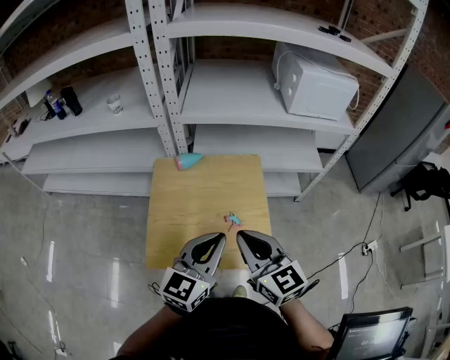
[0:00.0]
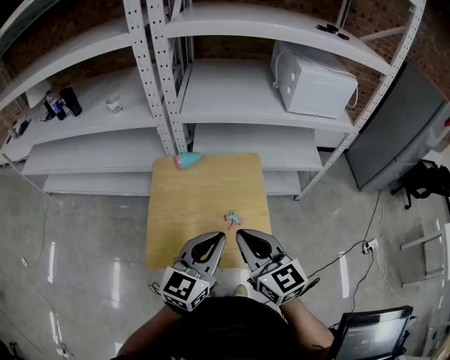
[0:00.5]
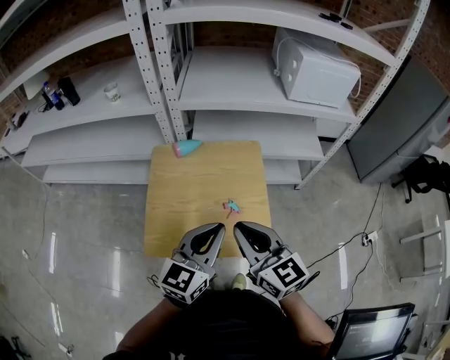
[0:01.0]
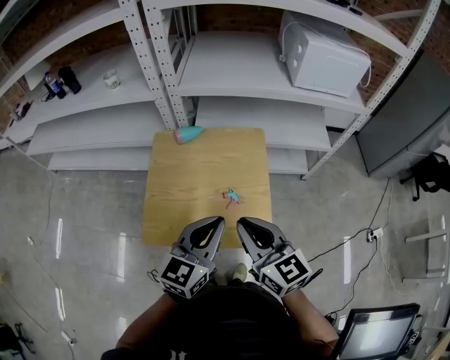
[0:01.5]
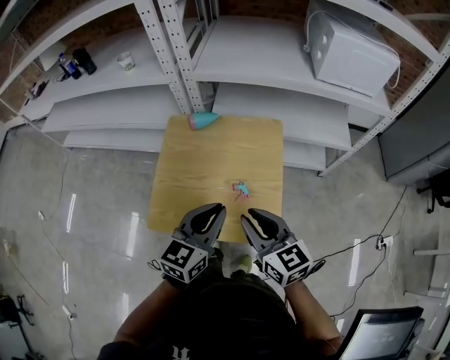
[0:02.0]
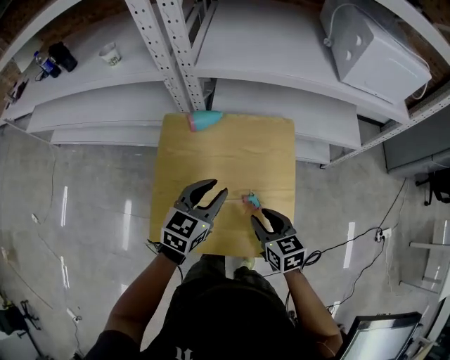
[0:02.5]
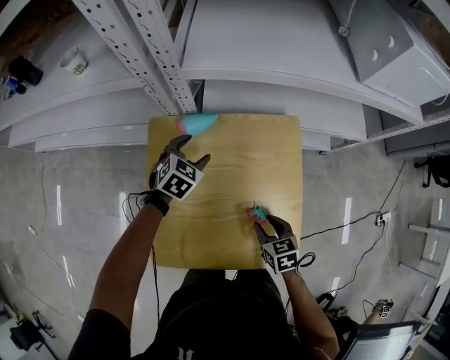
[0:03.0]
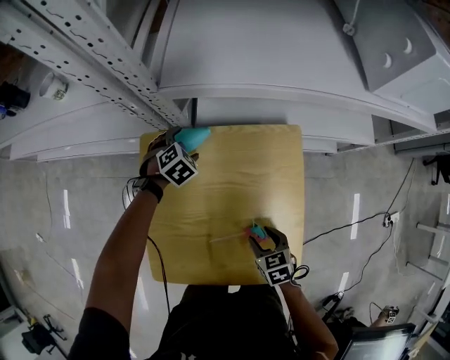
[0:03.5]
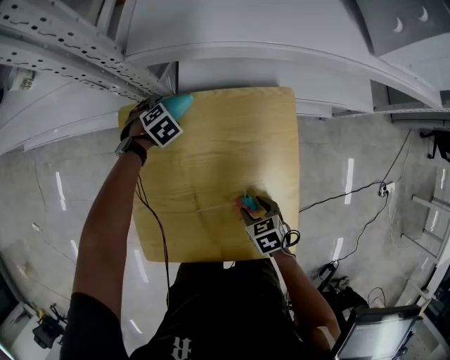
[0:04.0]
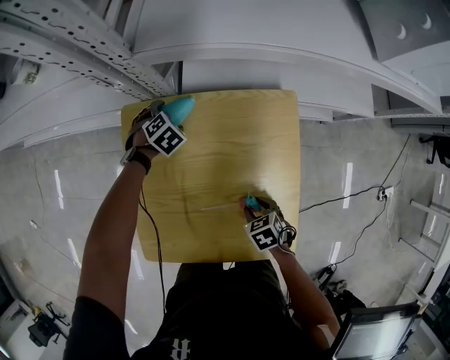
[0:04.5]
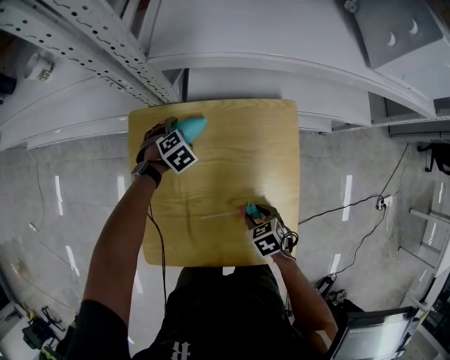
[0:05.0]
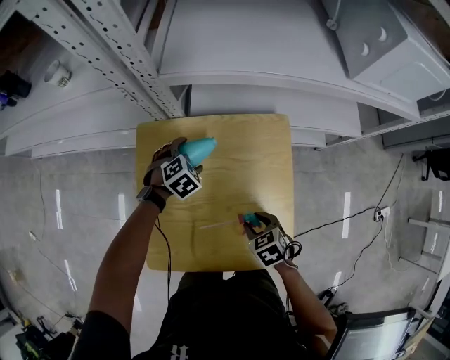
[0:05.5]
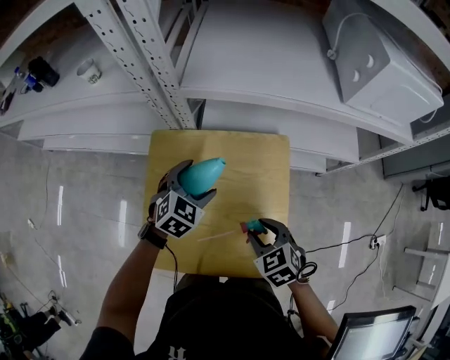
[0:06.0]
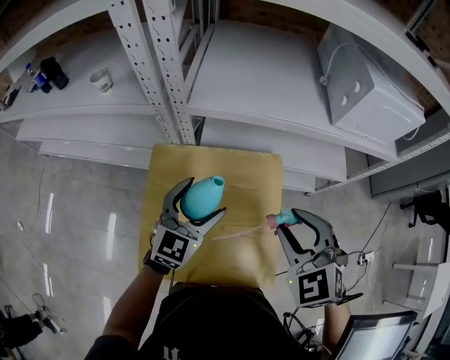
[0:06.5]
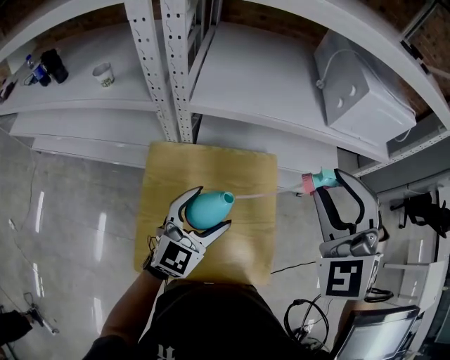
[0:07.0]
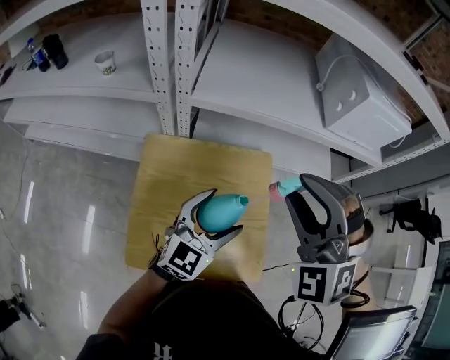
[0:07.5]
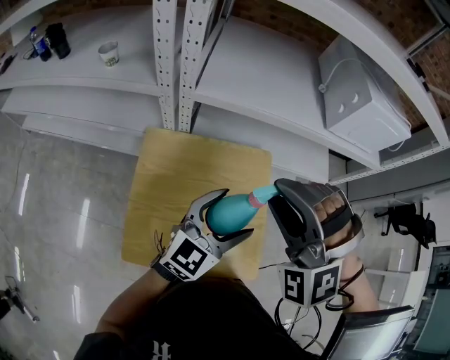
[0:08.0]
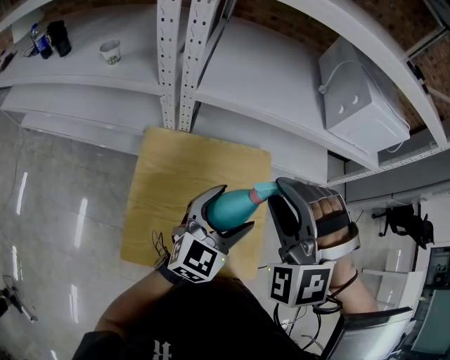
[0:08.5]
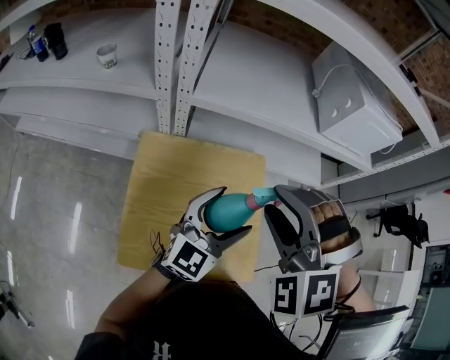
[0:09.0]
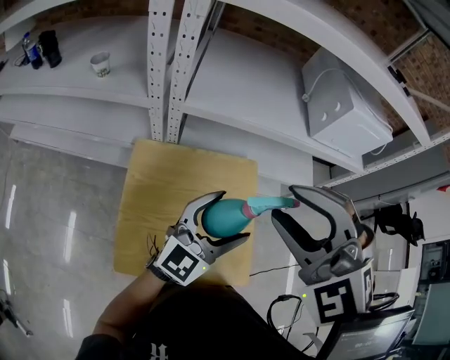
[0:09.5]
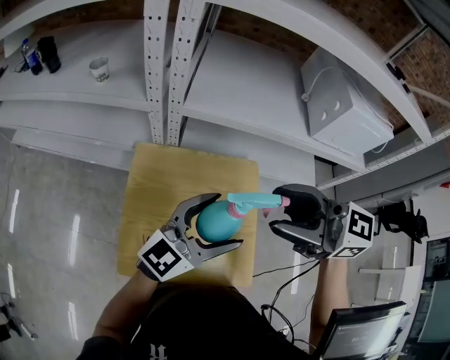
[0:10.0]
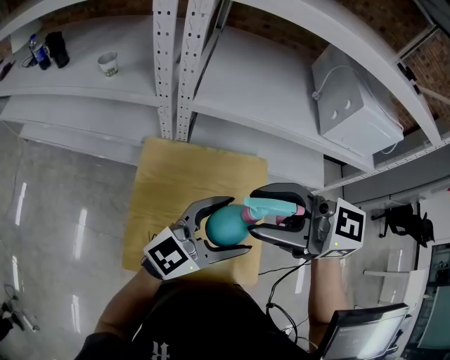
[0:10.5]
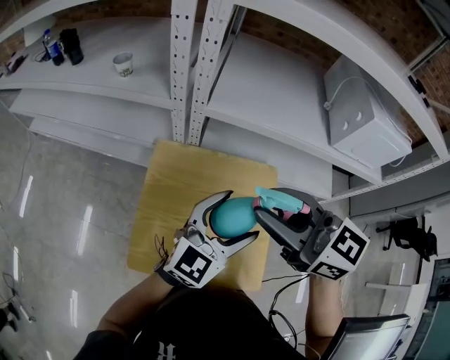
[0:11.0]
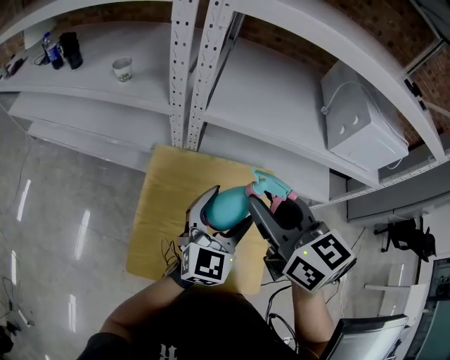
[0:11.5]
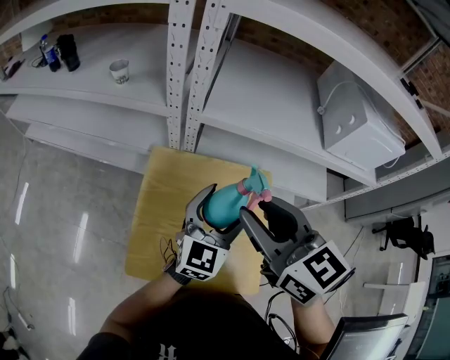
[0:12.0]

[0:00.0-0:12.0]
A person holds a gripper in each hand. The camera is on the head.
0:00.0 to 0:02.0: Both grippers travel together downward, some 10 cm.
0:02.0 to 0:04.0: The left gripper changes place by some 60 cm, tilts its fingers some 60 degrees downward, and opens up. The right gripper goes about 35 cm downward, points its fingers about 50 degrees further downward, and opens.
0:04.0 to 0:06.0: The grippers both shift upward by roughly 20 cm. The left gripper angles its fingers upward, by about 30 degrees; the right gripper rotates approximately 30 degrees.
0:06.0 to 0:08.0: The right gripper shifts approximately 30 cm upward, and twists about 70 degrees counterclockwise, seen from behind; the left gripper moves upward, backward and to the right, approximately 20 cm, and angles its fingers upward, by approximately 40 degrees.
0:08.0 to 0:10.0: The grippers both shift upward by about 5 cm. The right gripper swivels some 100 degrees.
0:10.0 to 0:12.0: The left gripper moves some 10 cm, and turns by roughly 30 degrees; the right gripper shifts by roughly 10 cm, and rotates about 30 degrees.

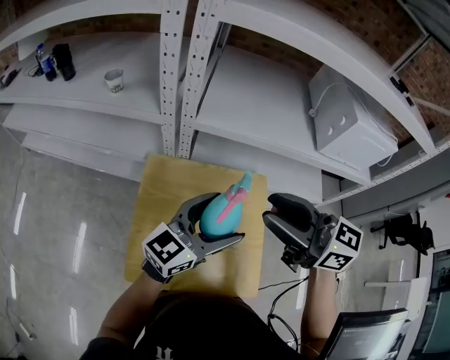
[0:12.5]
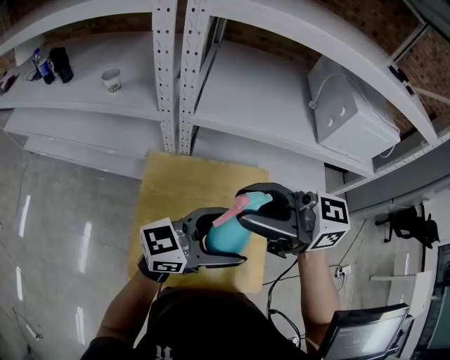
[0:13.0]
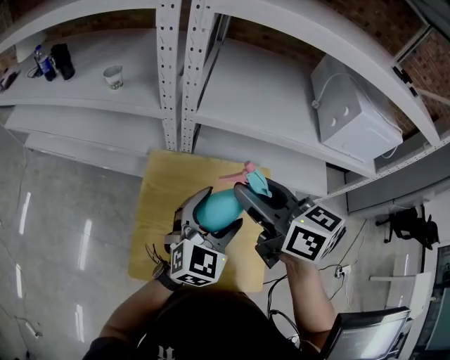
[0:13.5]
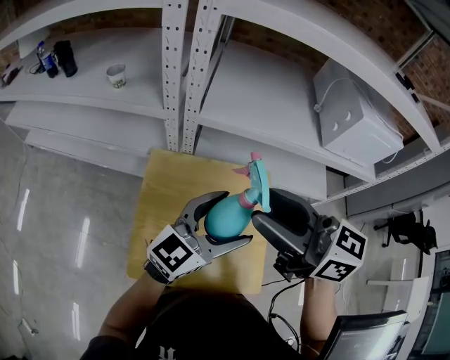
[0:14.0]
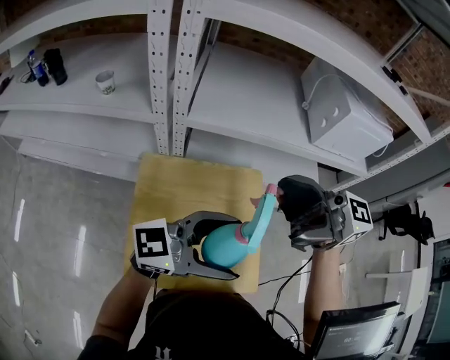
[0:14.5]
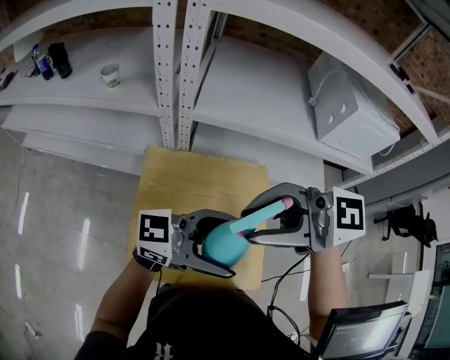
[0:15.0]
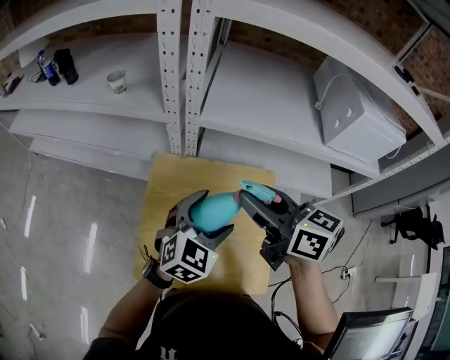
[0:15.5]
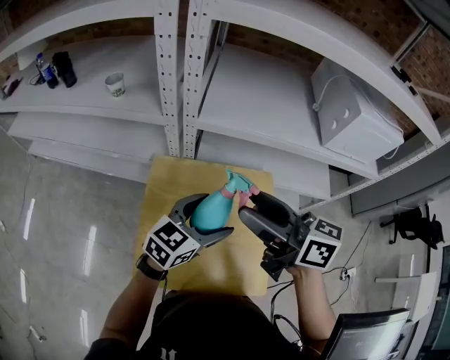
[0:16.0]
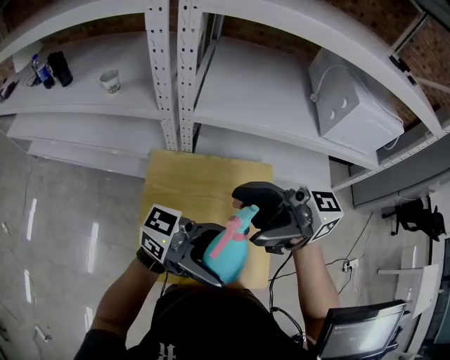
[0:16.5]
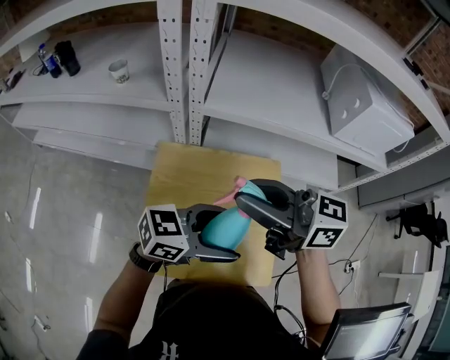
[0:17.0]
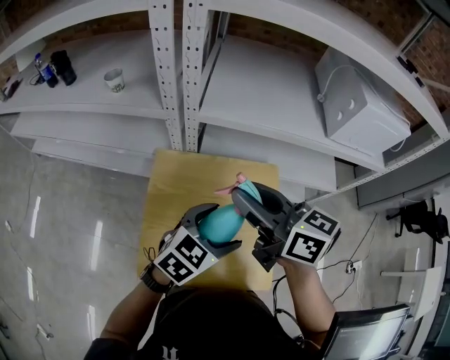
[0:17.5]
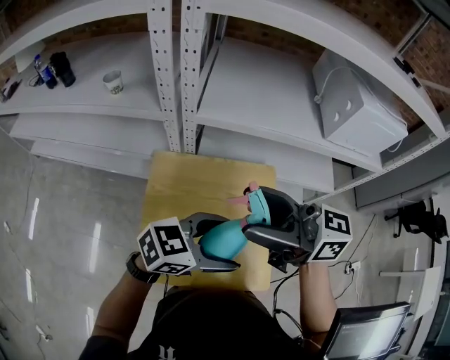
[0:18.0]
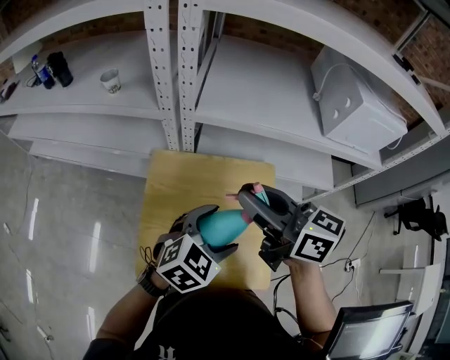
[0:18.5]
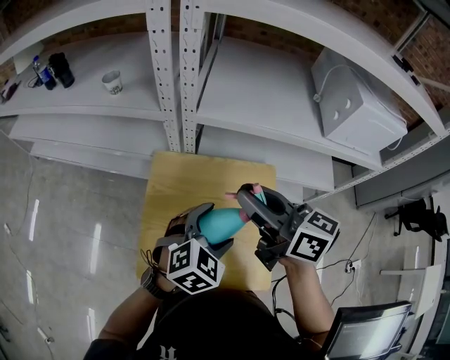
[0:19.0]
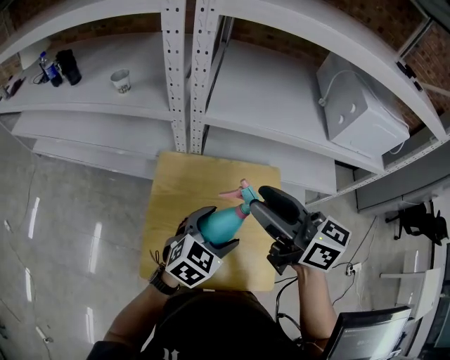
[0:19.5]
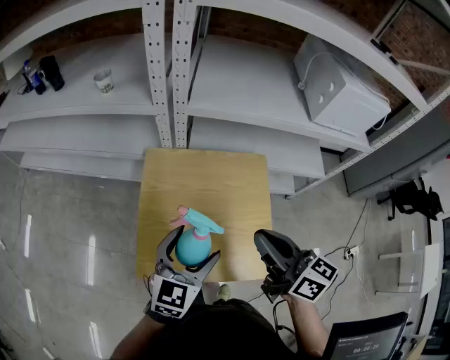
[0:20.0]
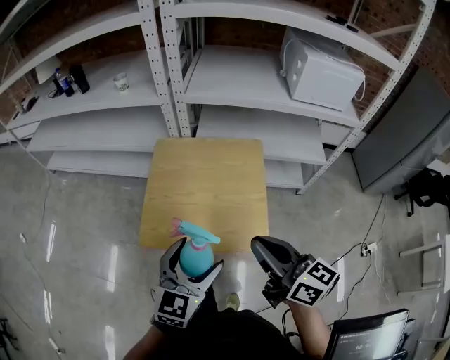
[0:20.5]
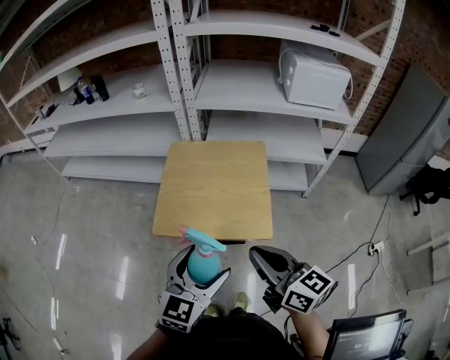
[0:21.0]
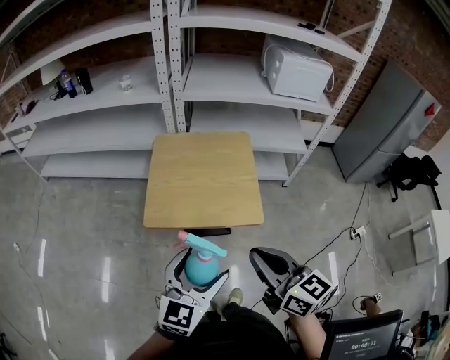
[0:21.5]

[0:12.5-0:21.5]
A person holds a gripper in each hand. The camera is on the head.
0:12.5 to 0:14.5: The right gripper goes approximately 5 cm upward, rotates roughly 30 degrees, and opens; the left gripper changes place by roughly 10 cm, and rotates approximately 40 degrees.
0:14.5 to 0:17.0: The right gripper swings up and down, about 10 cm each way, with 2 reversals, turns by roughly 20 degrees, and closes up. Meanwhile the left gripper goes up and down, approximately 10 cm each way, reversing 2 times, and rotates approximately 30 degrees.
0:17.0 to 0:19.5: The left gripper swings up and down, approximately 5 cm each way, with 2 reversals, and swivels roughly 50 degrees. Meanwhile the right gripper turns by some 20 degrees, and opens and closes again.
0:19.5 to 0:21.5: Both grippers are carried backward, approximately 50 cm. The left gripper swivels approximately 20 degrees. The right gripper closes.

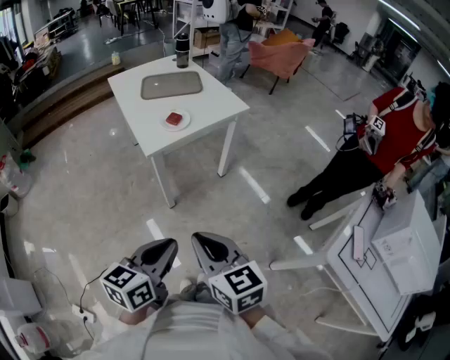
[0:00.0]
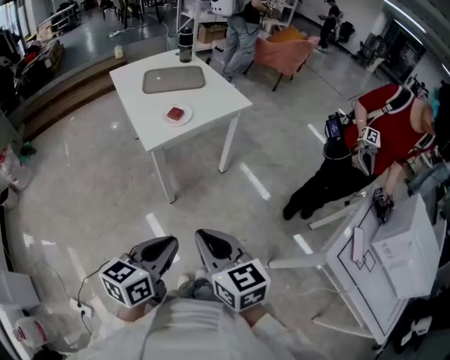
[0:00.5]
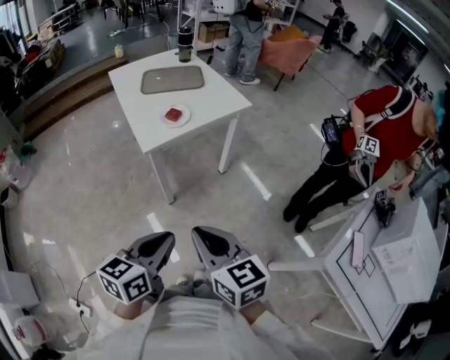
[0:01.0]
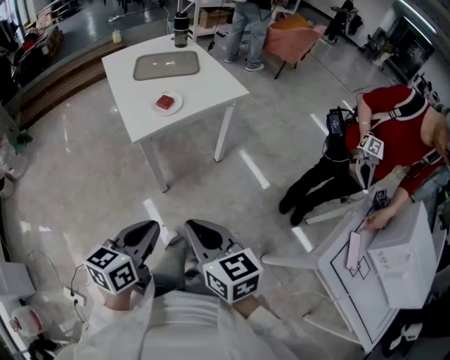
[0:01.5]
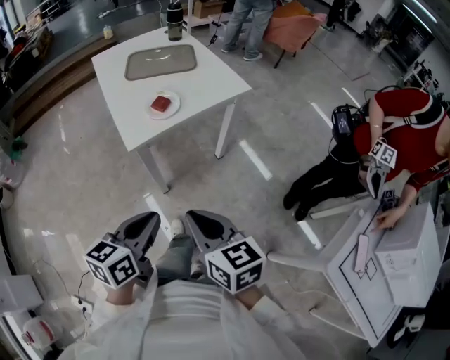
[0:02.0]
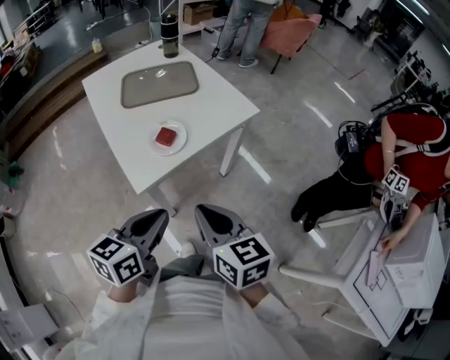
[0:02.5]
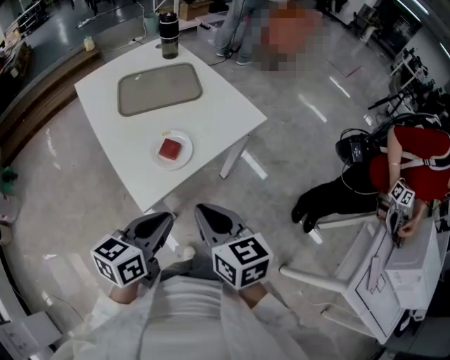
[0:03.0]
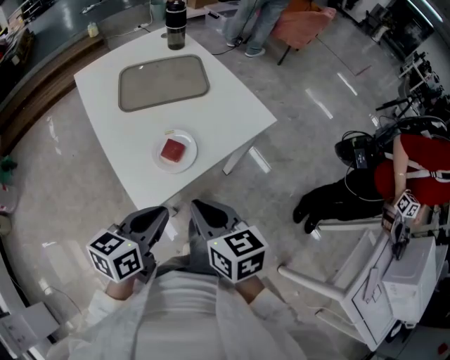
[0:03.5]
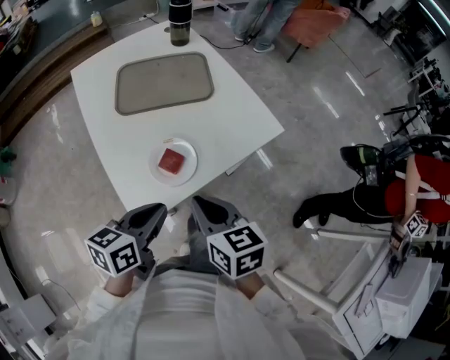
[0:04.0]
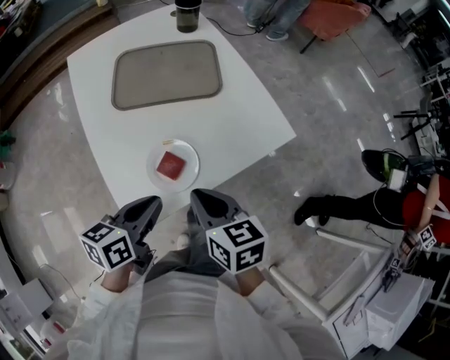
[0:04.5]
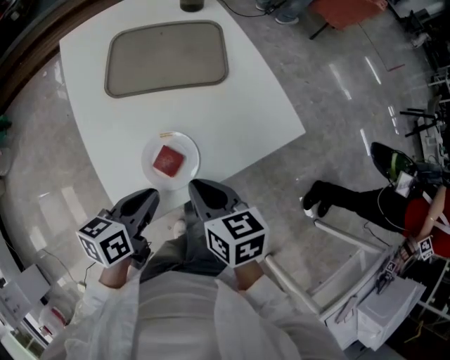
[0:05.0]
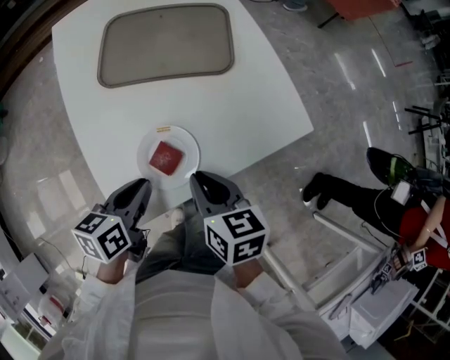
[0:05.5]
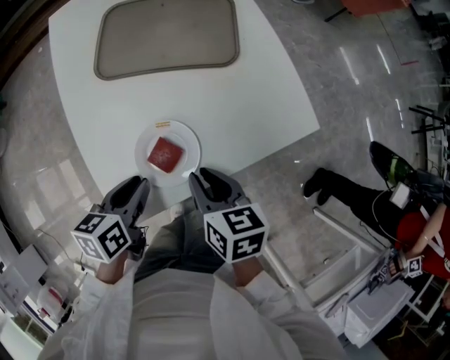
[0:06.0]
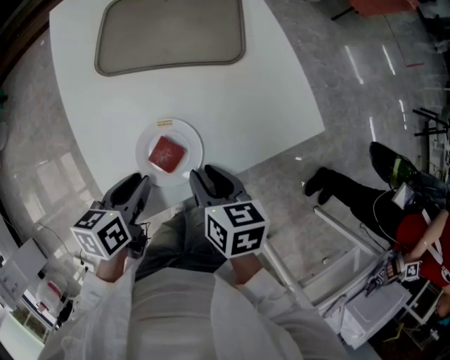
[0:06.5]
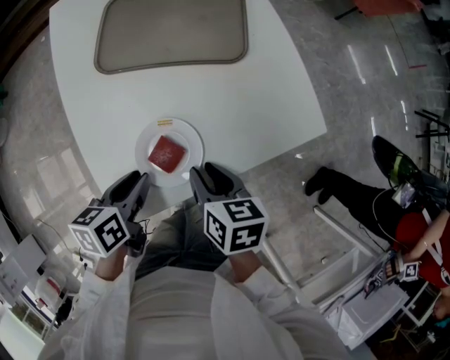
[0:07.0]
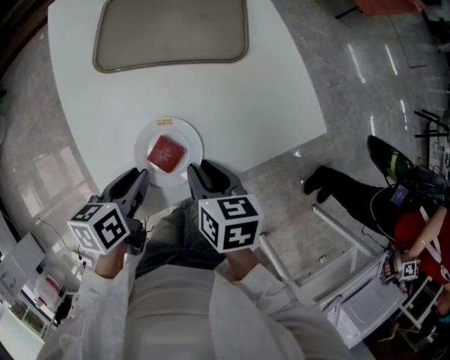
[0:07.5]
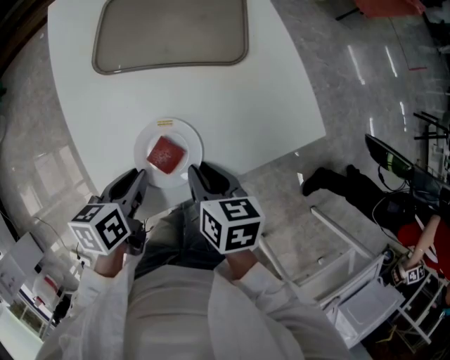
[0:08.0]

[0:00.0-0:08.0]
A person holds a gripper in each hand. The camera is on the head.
0:00.0 to 0:02.0: The grippers both shift forward by some 15 cm.
0:02.0 to 0:04.0: Both grippers move forward, some 30 cm.
0:04.0 to 0:06.0: The left gripper travels downward, forward and to the left by about 15 cm, and turns by approximately 20 degrees; the right gripper goes some 15 cm downward and forward.
0:06.0 to 0:08.0: The grippers stay close to where they were, moving slightly.
